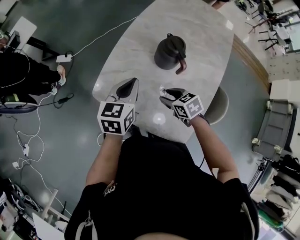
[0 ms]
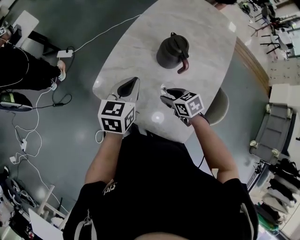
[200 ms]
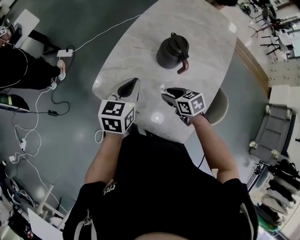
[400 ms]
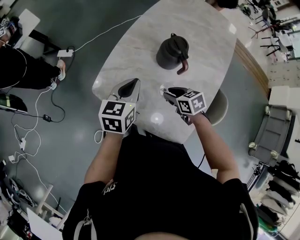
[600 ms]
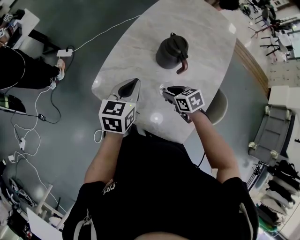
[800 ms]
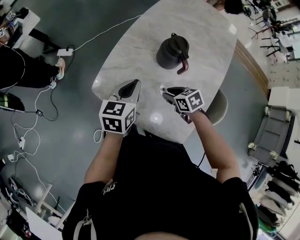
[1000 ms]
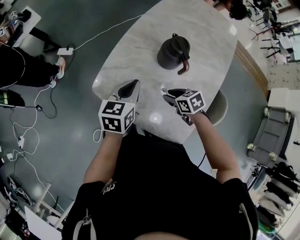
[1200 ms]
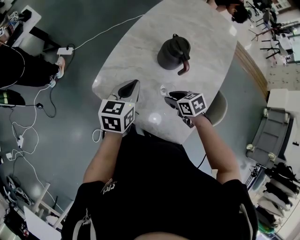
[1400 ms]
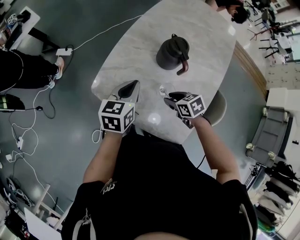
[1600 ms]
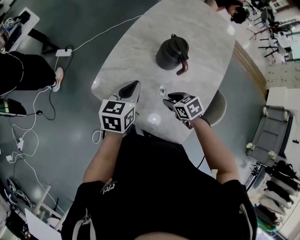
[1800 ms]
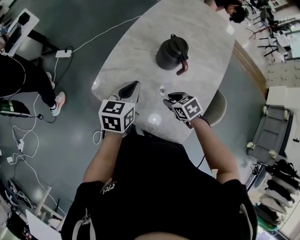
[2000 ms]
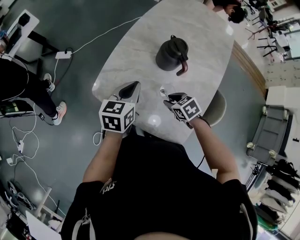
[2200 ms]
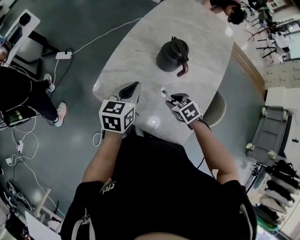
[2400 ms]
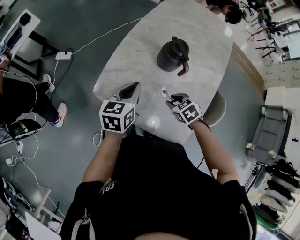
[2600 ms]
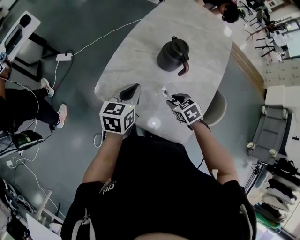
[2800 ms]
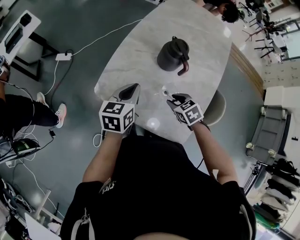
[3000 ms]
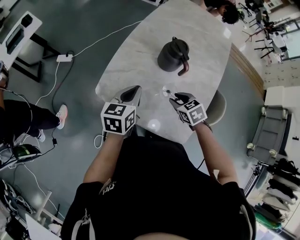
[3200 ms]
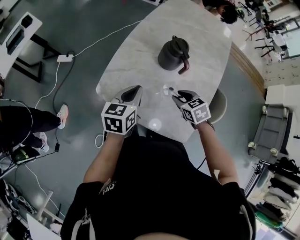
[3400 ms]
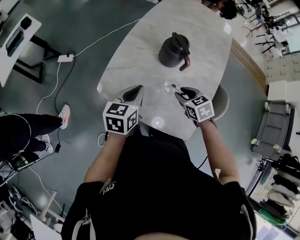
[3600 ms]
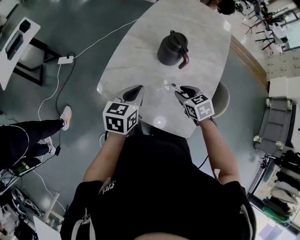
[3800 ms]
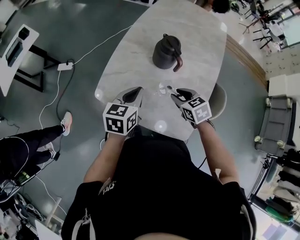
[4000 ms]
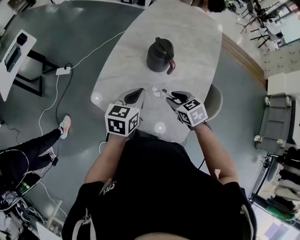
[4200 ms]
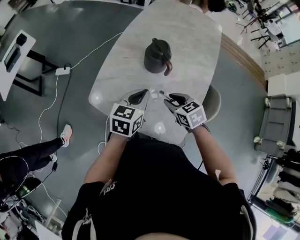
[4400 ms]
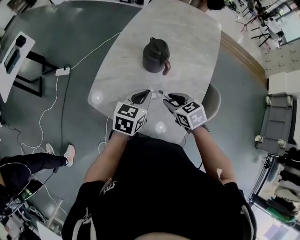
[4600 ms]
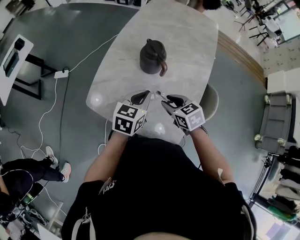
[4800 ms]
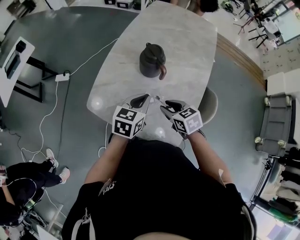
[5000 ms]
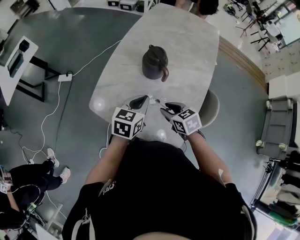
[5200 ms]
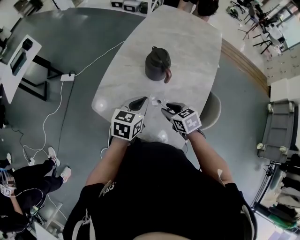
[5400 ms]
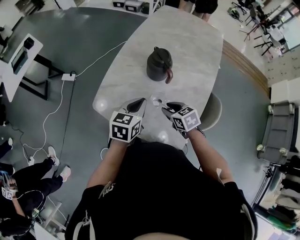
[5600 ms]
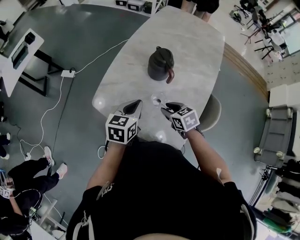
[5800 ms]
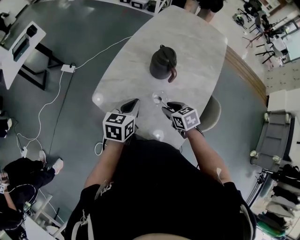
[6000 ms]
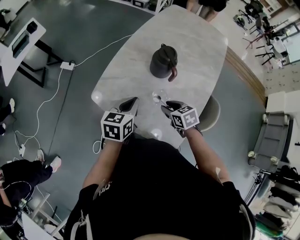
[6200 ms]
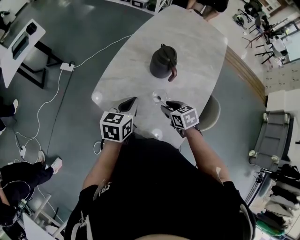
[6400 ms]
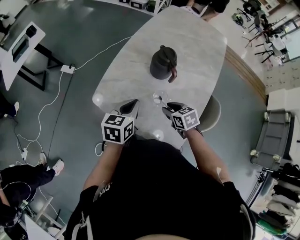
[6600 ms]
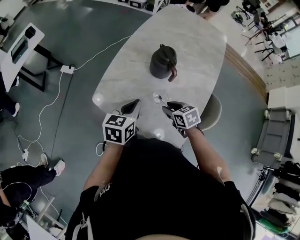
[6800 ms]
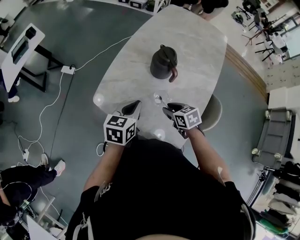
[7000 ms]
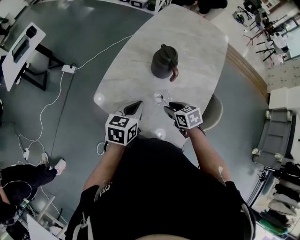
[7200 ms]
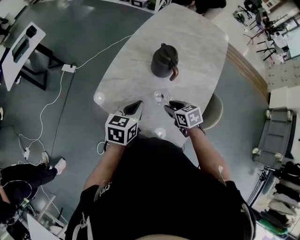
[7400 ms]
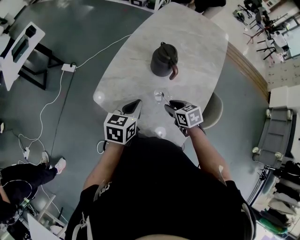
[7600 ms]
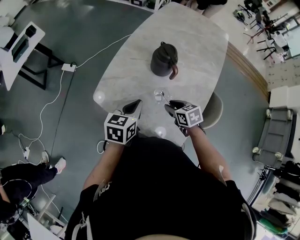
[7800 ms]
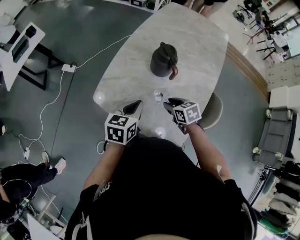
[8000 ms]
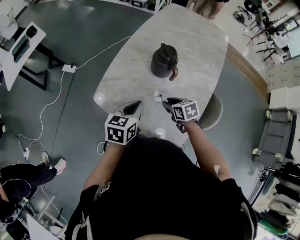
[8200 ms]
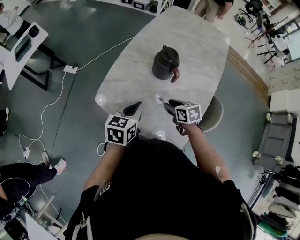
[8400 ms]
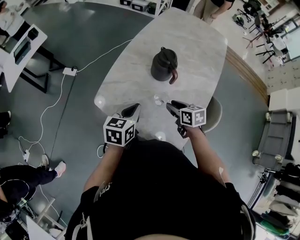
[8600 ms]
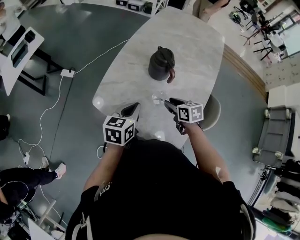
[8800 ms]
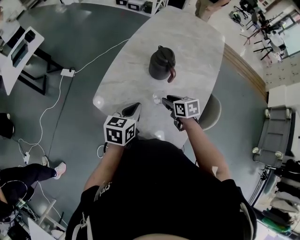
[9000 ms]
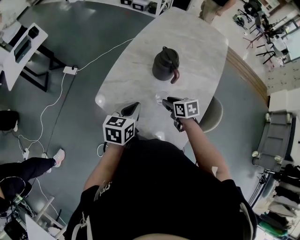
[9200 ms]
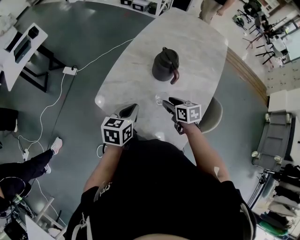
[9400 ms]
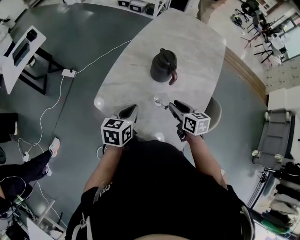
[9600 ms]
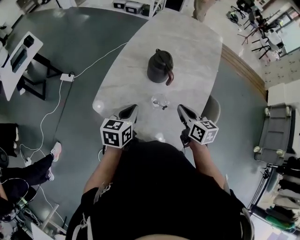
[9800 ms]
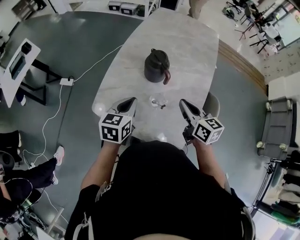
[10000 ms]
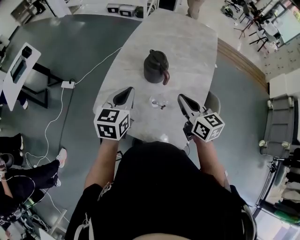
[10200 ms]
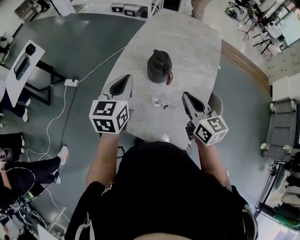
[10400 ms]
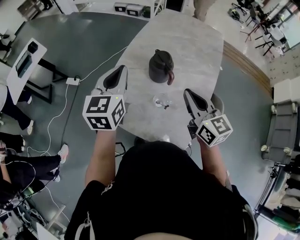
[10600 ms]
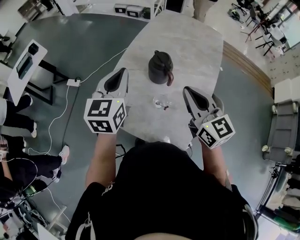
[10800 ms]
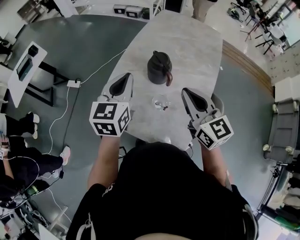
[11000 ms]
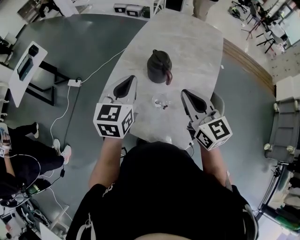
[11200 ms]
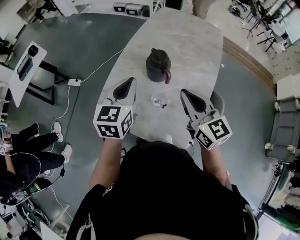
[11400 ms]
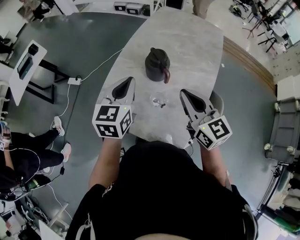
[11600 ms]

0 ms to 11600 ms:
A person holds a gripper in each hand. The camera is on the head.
0 ms to 1400 ms: The grippers make only small movements.
2800 ms to 4400 ms: The left gripper moves to the right, roughly 10 cm; the right gripper travels upward by approximately 5 cm.
4400 ms to 5800 ms: There are only small adjustments of the grippers.
5800 ms to 8800 ms: The grippers stay close to where they were, moving slightly.
8800 ms to 10200 ms: The left gripper goes some 10 cm upward and forward; the right gripper travels upward by roughly 15 cm, turns by roughly 30 degrees, and closes.
10200 ms to 11600 ms: The left gripper goes some 5 cm upward. Meanwhile the right gripper travels upward by roughly 10 cm.

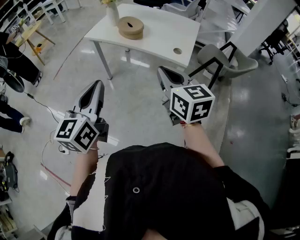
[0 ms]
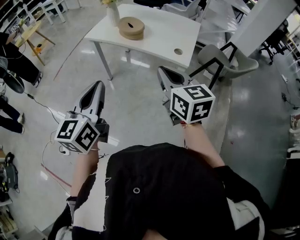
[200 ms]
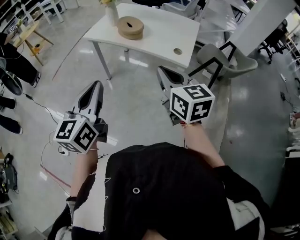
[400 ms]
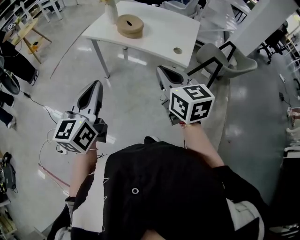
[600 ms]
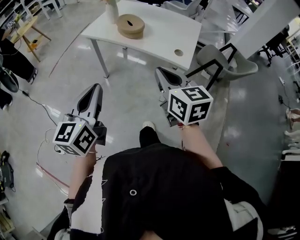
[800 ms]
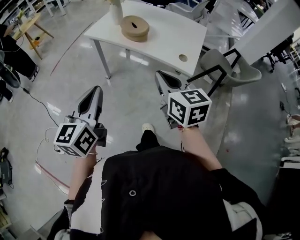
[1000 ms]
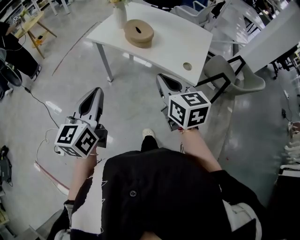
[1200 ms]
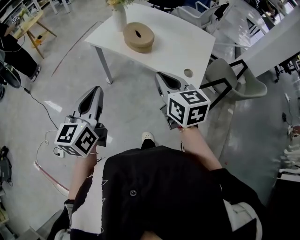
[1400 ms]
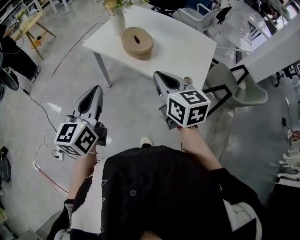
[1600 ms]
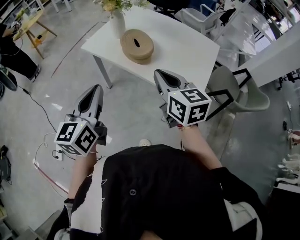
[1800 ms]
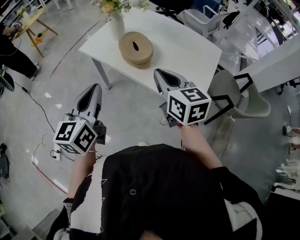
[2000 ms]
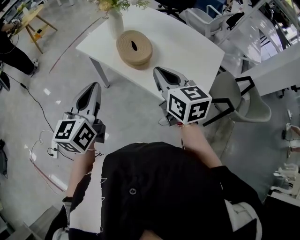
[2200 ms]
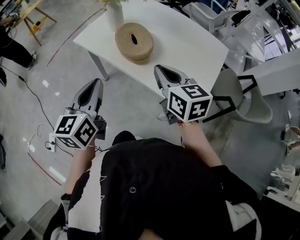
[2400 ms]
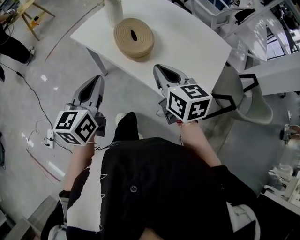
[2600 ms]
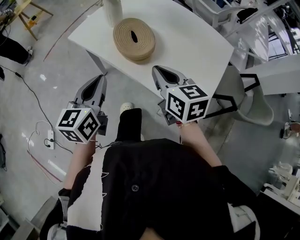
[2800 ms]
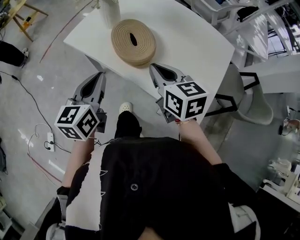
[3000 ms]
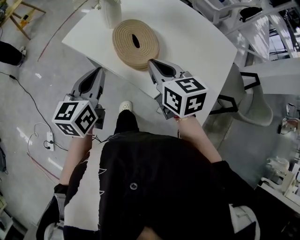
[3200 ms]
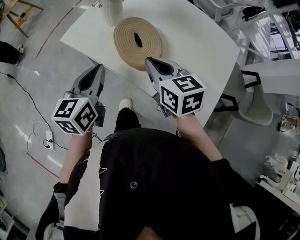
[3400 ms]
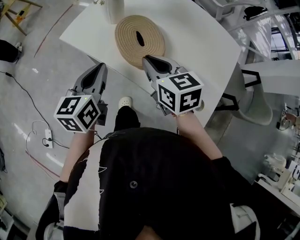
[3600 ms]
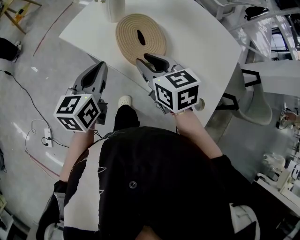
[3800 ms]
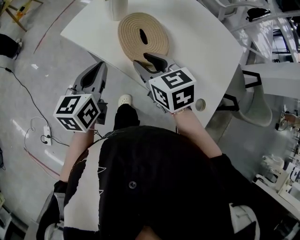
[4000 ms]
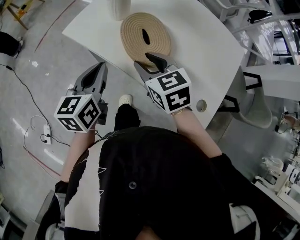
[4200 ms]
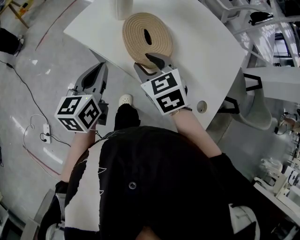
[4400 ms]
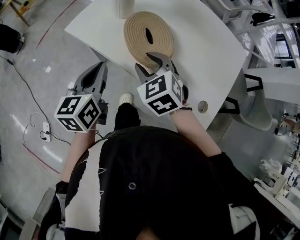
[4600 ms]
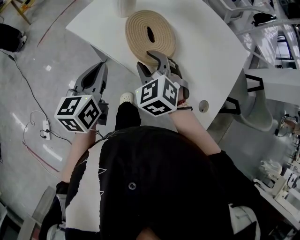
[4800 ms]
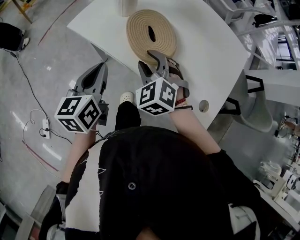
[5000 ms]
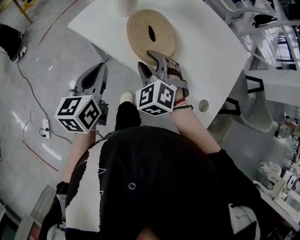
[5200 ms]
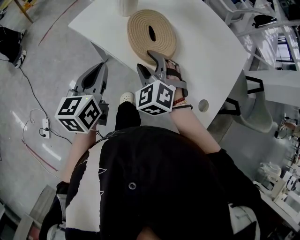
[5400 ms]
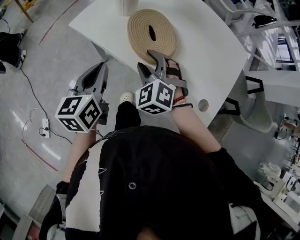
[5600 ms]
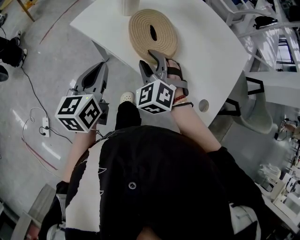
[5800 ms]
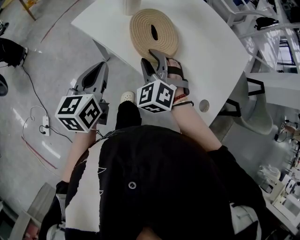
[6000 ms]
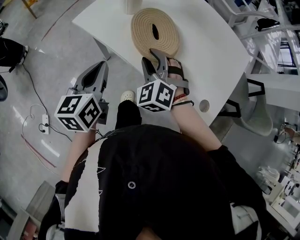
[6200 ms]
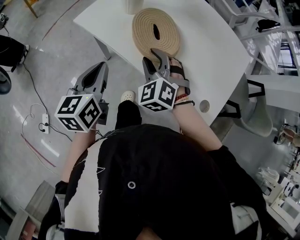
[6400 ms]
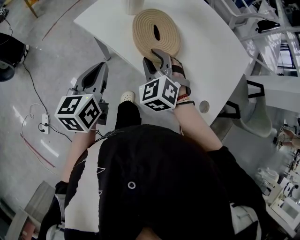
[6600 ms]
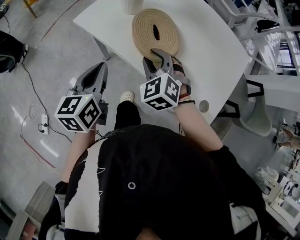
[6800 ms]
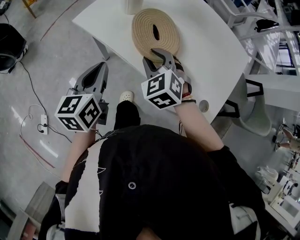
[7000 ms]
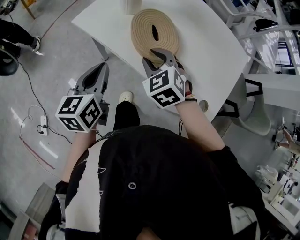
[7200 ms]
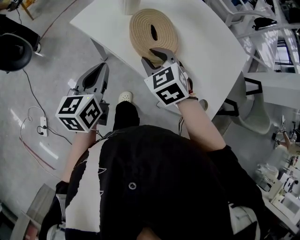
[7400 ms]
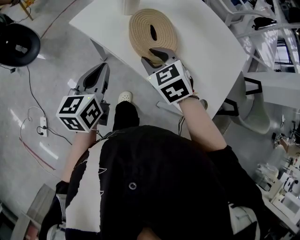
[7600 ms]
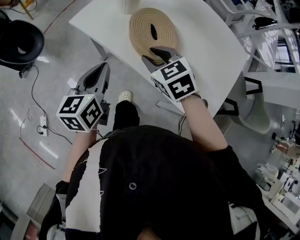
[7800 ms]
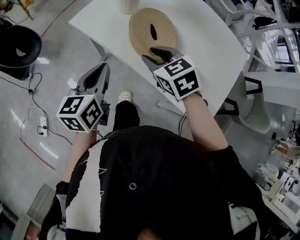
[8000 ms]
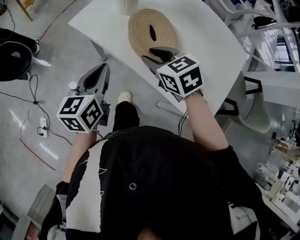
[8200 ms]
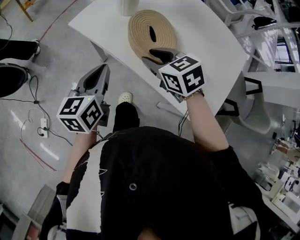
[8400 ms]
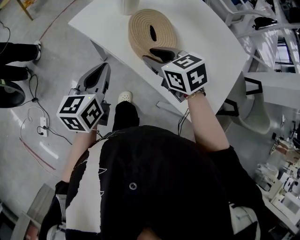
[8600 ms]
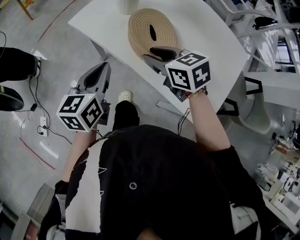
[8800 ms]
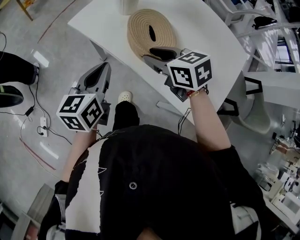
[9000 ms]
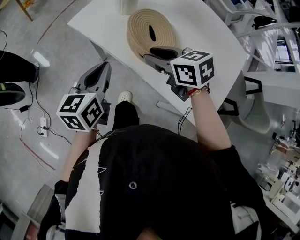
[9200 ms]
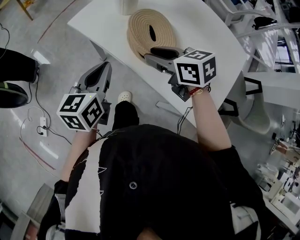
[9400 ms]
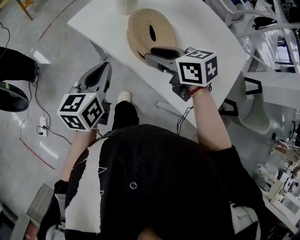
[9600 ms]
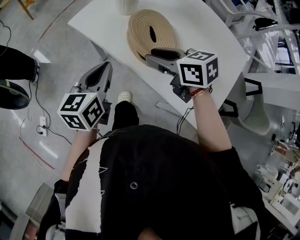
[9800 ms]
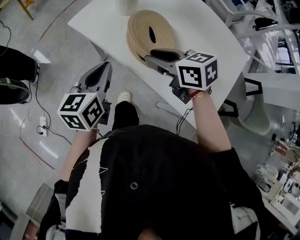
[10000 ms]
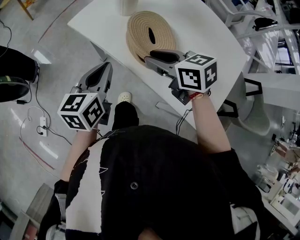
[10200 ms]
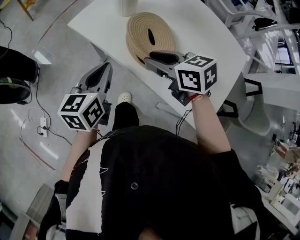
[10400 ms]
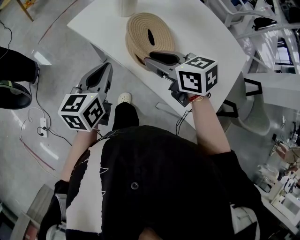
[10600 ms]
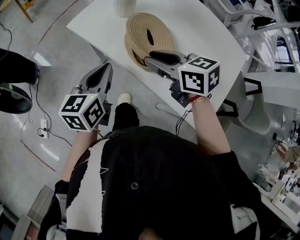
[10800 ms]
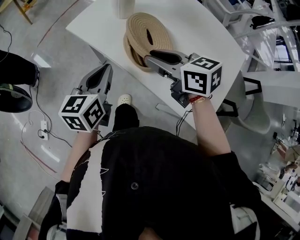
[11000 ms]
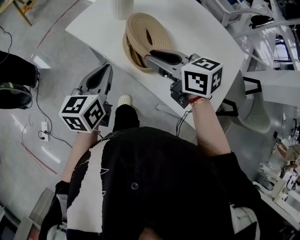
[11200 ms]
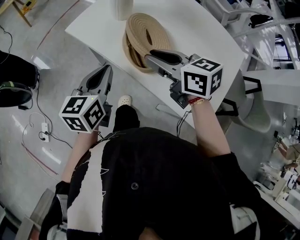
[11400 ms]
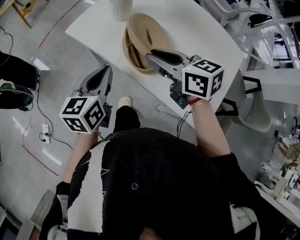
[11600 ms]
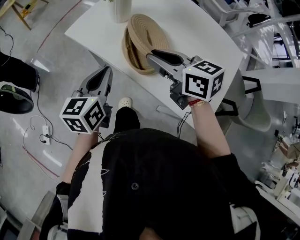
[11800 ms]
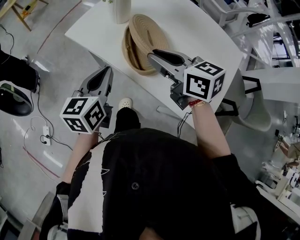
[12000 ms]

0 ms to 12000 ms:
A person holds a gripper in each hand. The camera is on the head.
0 ms to 1600 ms: The two grippers go some 20 cm forward.
1600 ms to 3000 ms: Both grippers travel together forward and downward, roughly 20 cm.
3000 ms to 4400 ms: The left gripper goes roughly 5 cm forward; the right gripper goes approximately 10 cm to the left, downward and forward, swivels about 30 degrees, and opens its fingers.
4400 ms to 6000 ms: The right gripper rotates approximately 40 degrees.
6000 ms to 7600 ms: The right gripper rotates about 30 degrees.
7600 ms to 9000 ms: The right gripper rotates some 30 degrees.
9000 ms to 10400 ms: There are only small adjustments of the grippers.
10400 ms to 12000 ms: The right gripper travels upward by some 5 cm.
